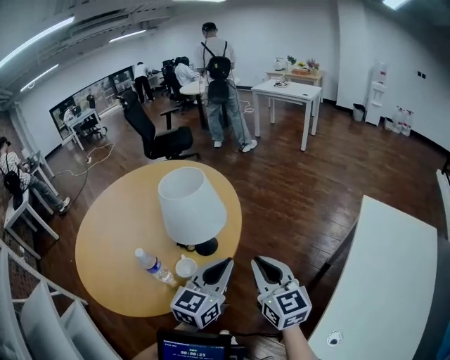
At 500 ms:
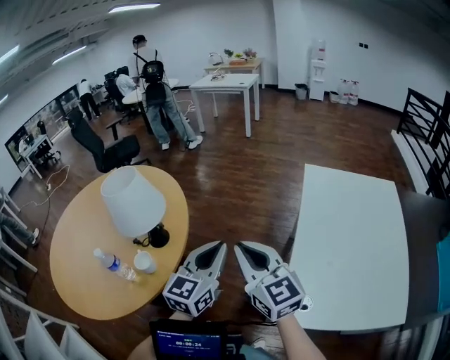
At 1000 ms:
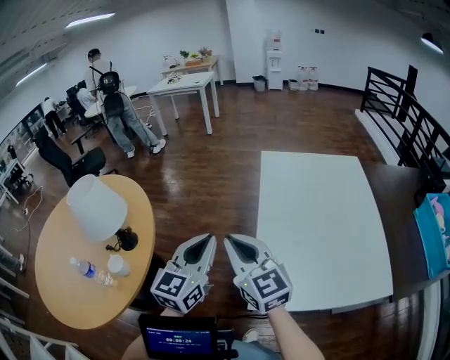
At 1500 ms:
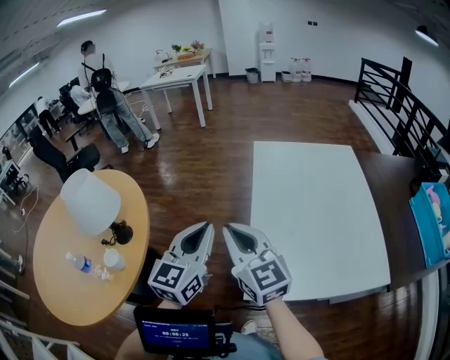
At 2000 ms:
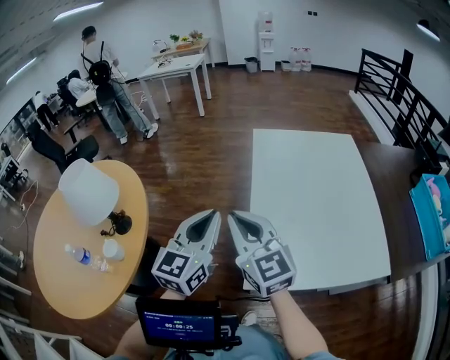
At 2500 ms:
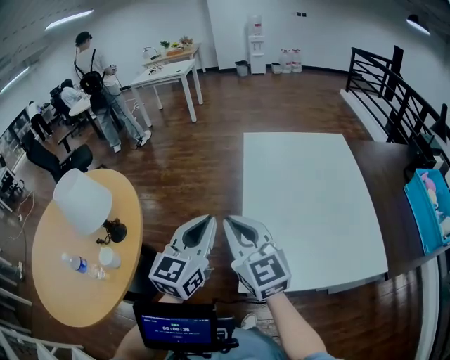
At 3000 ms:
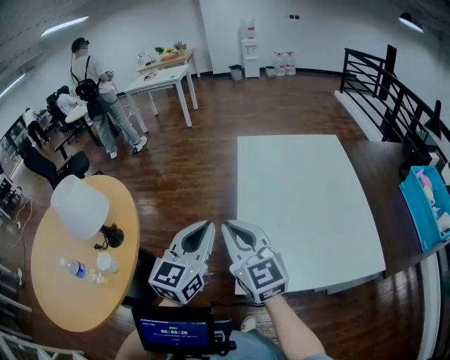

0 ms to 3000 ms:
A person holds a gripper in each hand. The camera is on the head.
0 ms to 1500 ms: The right gripper is displaced to the right and backward by about 25 cm, and rotates roughly 20 degrees. The left gripper moves to the right, about 25 cm, and turns by roughly 30 degrees.
1500 ms to 3000 ms: The grippers move only a little.

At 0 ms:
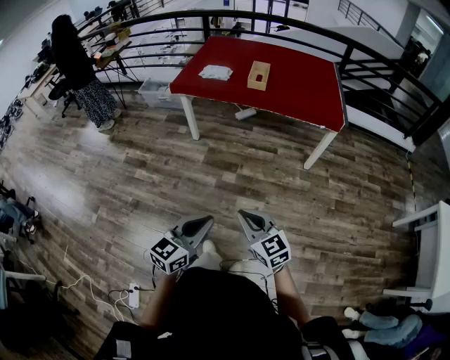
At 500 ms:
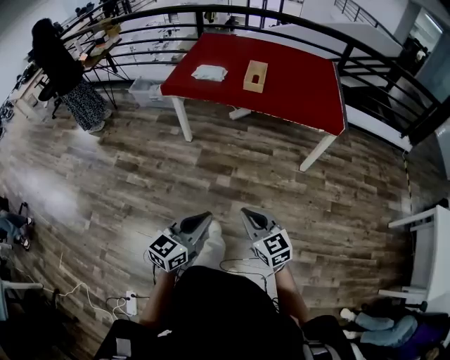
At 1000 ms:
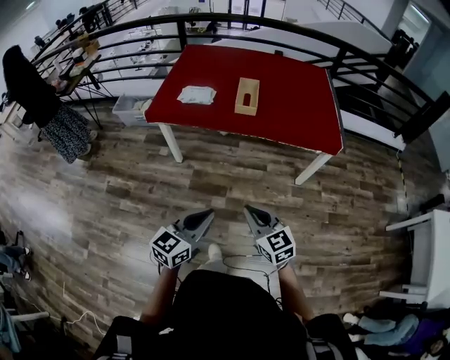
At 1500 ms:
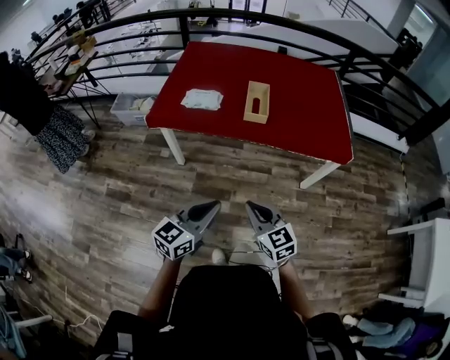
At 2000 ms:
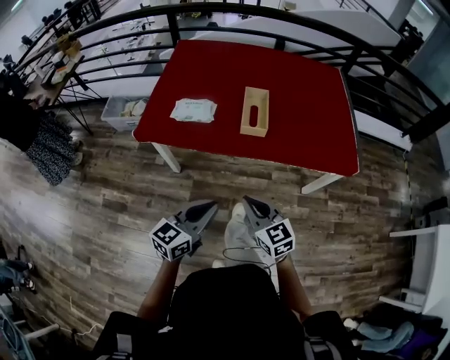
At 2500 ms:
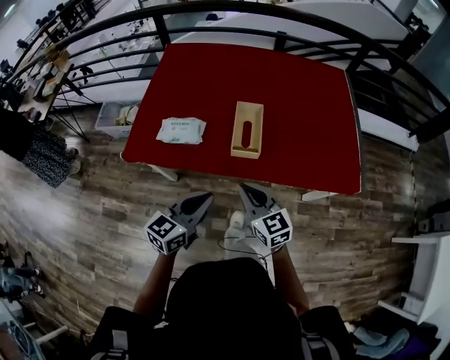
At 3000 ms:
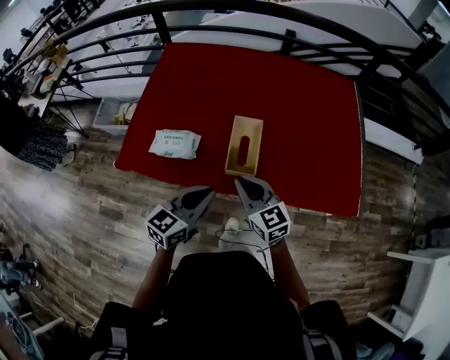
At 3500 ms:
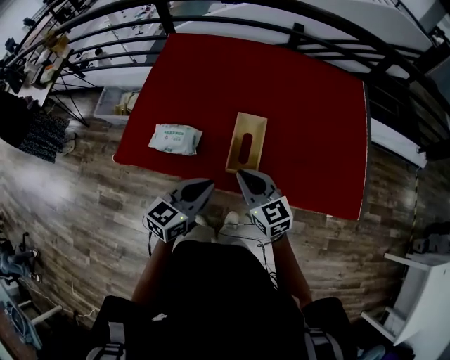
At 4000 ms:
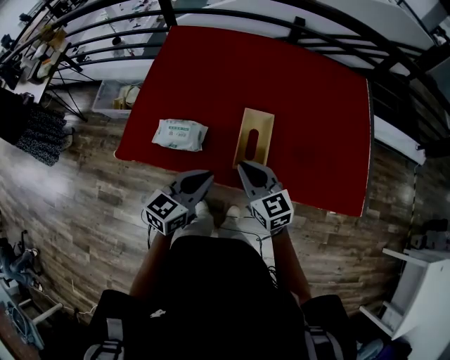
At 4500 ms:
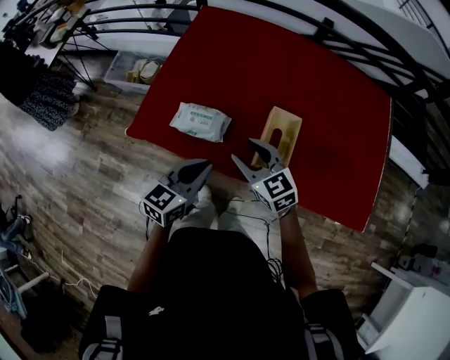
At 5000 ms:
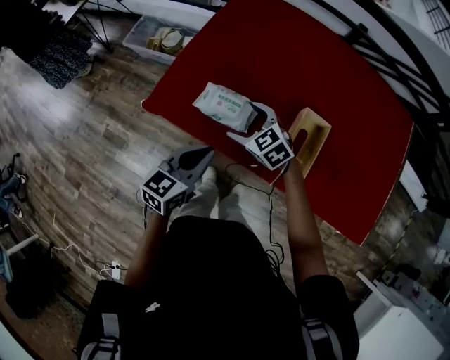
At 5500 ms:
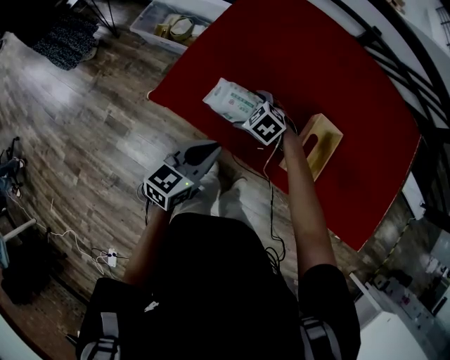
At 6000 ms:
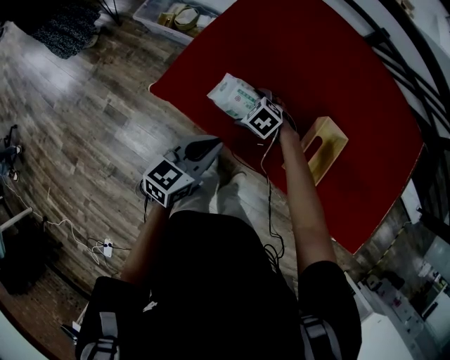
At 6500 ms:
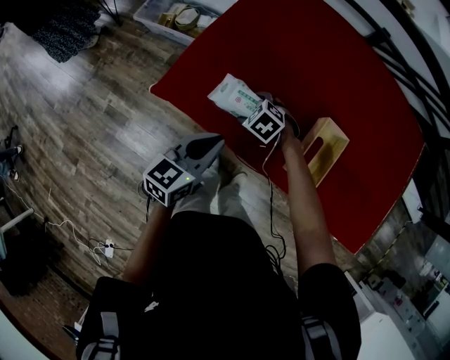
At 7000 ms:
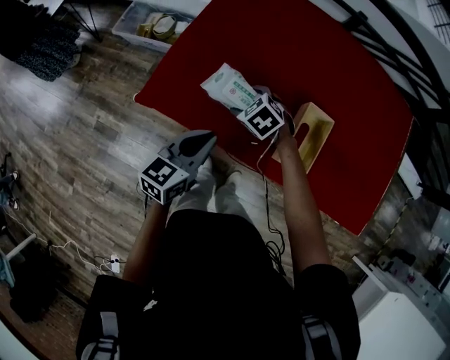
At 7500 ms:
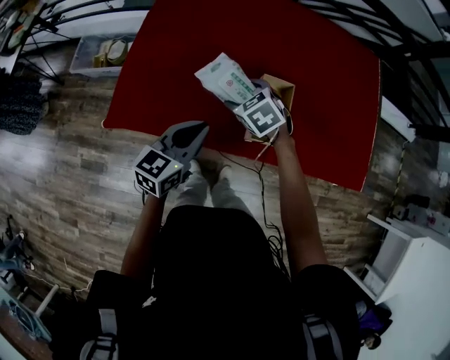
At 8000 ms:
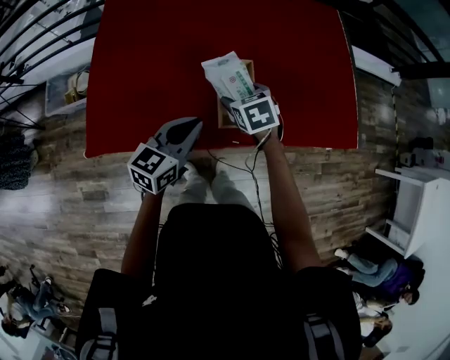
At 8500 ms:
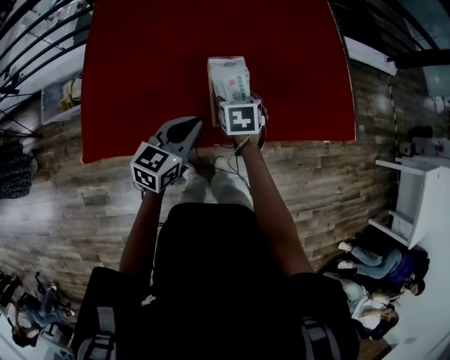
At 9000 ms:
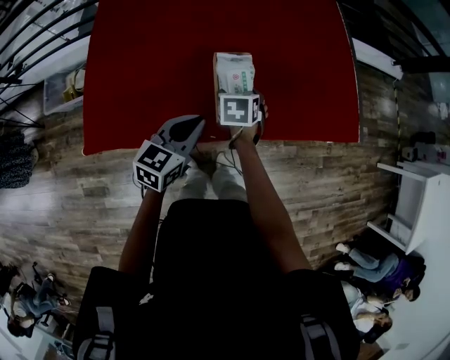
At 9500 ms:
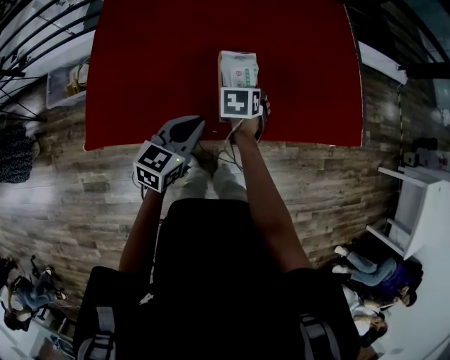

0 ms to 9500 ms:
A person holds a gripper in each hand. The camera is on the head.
0 ms to 2000 ms: The pair of grippers is taken forward, about 50 cm.
2000 ms to 4000 ms: Both grippers move forward, approximately 35 cm.
4000 ms to 5500 ms: The right gripper ends up roughly 35 cm from where it was, angles its fingers downward, by roughly 40 degrees, and opens its fingers. The left gripper ends up some 20 cm from where it was.
5500 ms to 7500 ms: The left gripper shifts by some 10 cm. Meanwhile the right gripper changes place by about 15 cm, and turns by about 30 degrees.
7500 ms to 9500 ms: The right gripper ends up approximately 15 cm from where it was, and twists roughly 50 degrees clockwise, seen from behind. Meanwhile the left gripper moves approximately 10 cm.

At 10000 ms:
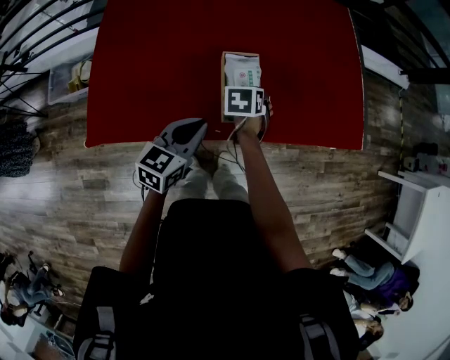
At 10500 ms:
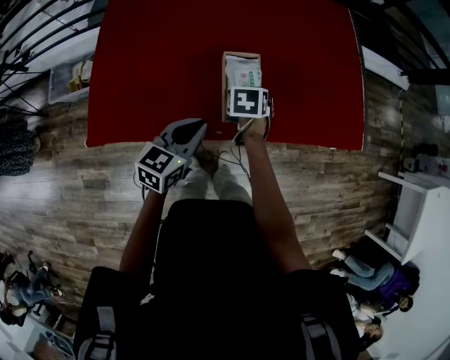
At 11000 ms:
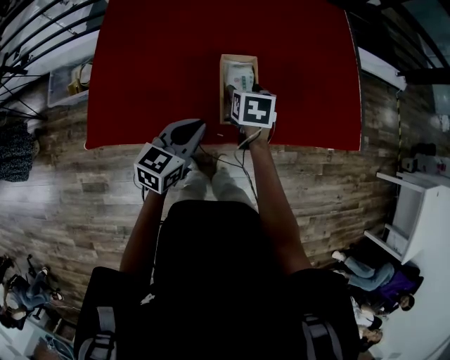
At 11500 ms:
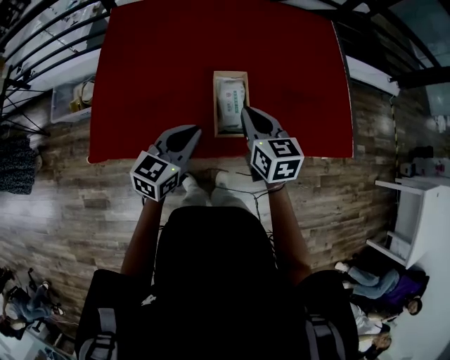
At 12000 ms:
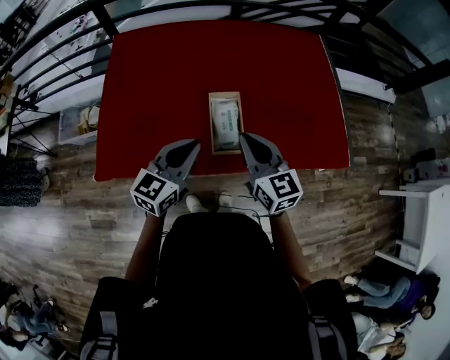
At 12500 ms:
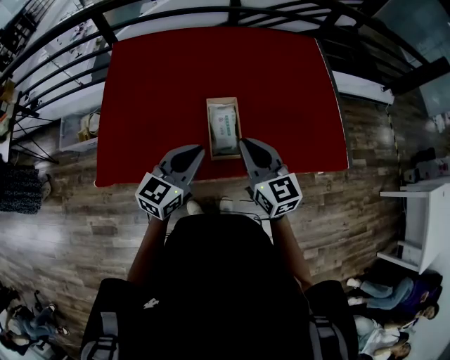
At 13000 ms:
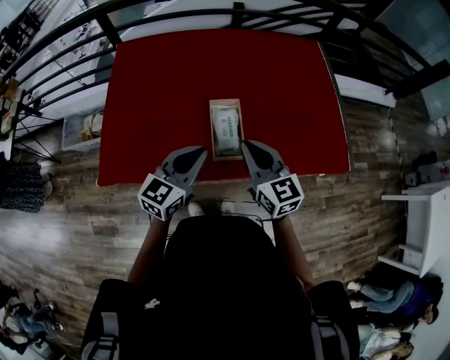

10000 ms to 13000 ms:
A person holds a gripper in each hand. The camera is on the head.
10000 ms to 11500 ms: The right gripper is displaced upward by some 15 cm, angles its fingers upward, by about 40 degrees, and closes up. Meanwhile the left gripper moves upward, some 5 cm.
11500 ms to 13000 ms: The left gripper goes roughly 5 cm upward. Meanwhile the right gripper heads upward and backward, covering some 10 cm.

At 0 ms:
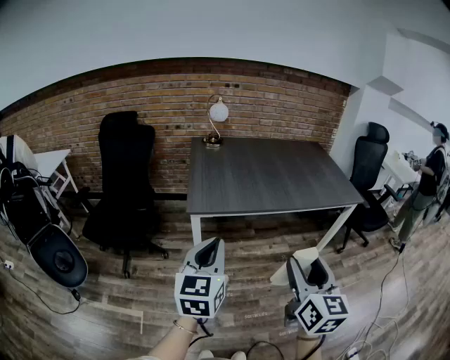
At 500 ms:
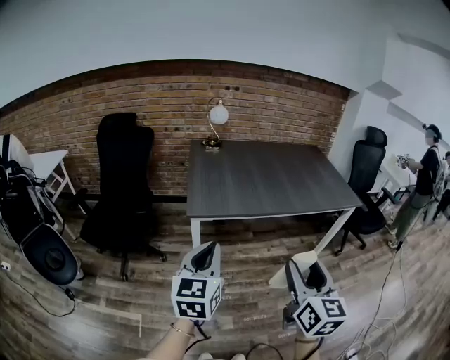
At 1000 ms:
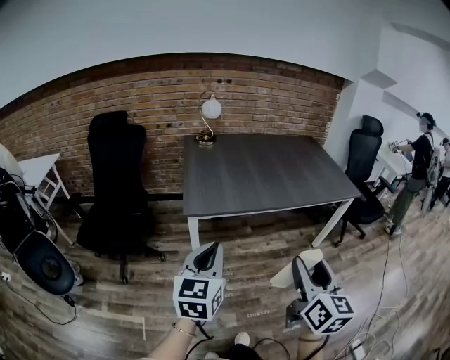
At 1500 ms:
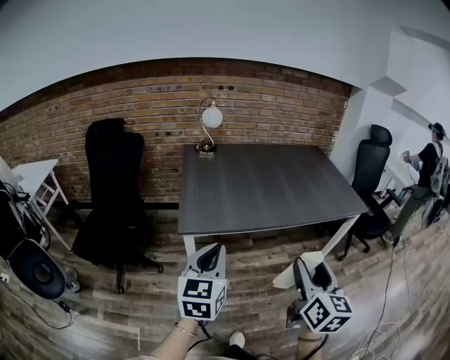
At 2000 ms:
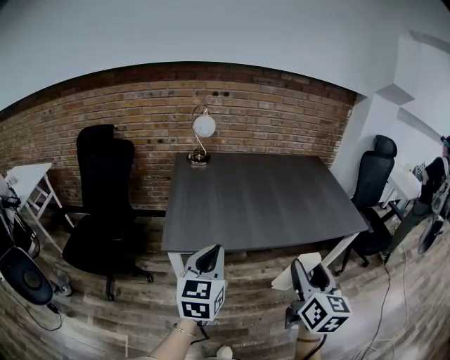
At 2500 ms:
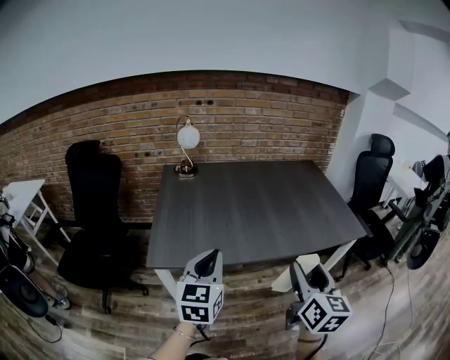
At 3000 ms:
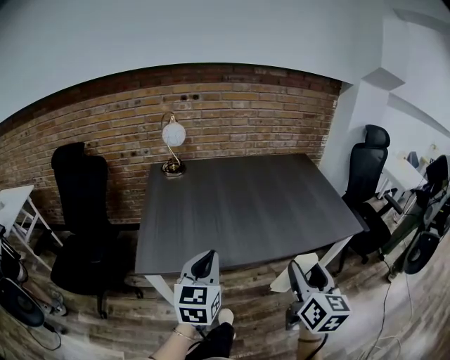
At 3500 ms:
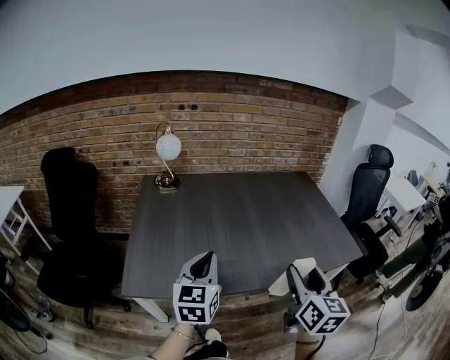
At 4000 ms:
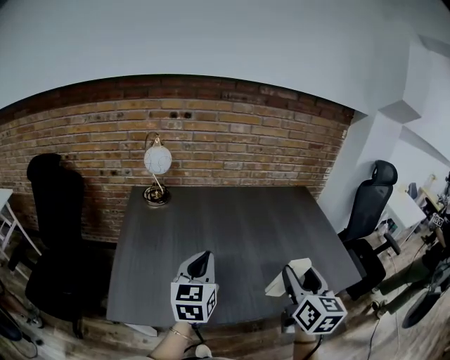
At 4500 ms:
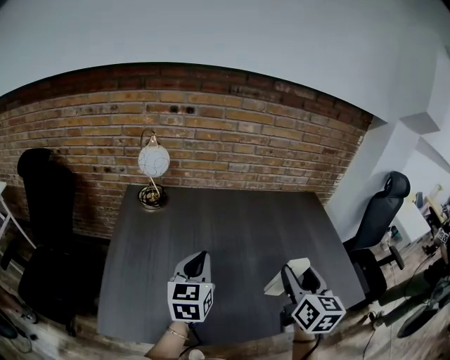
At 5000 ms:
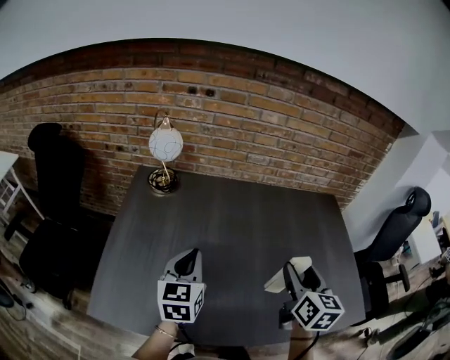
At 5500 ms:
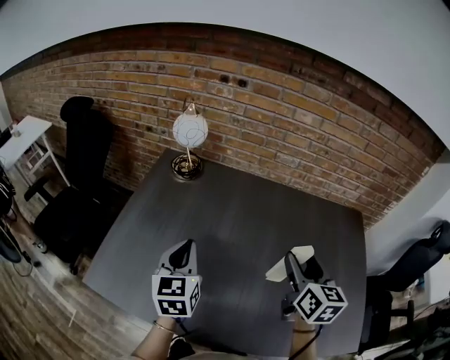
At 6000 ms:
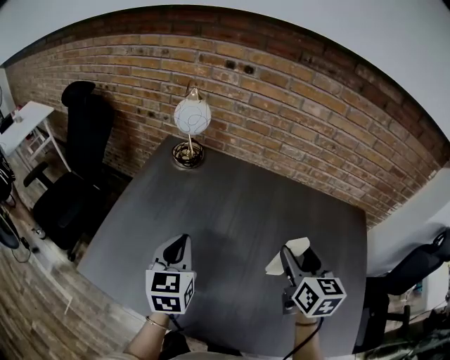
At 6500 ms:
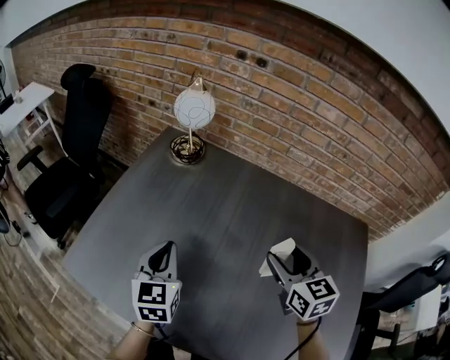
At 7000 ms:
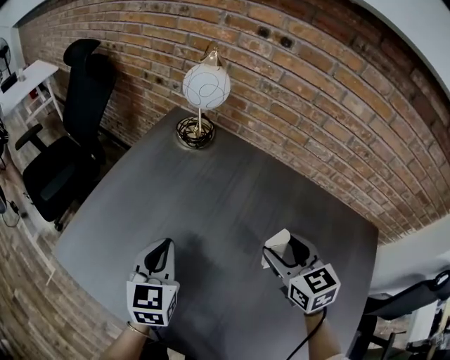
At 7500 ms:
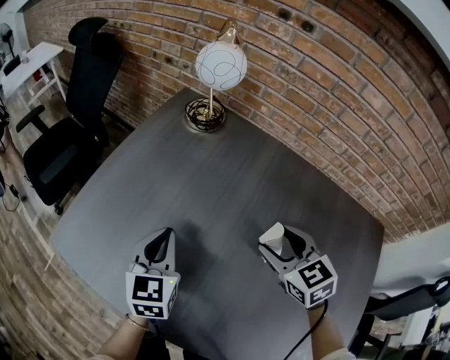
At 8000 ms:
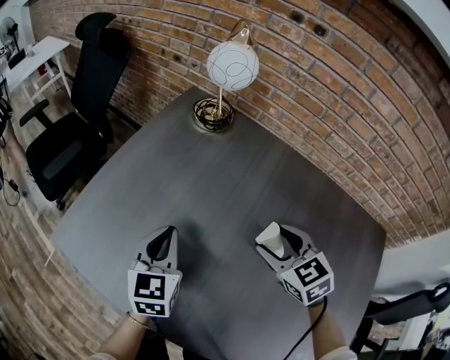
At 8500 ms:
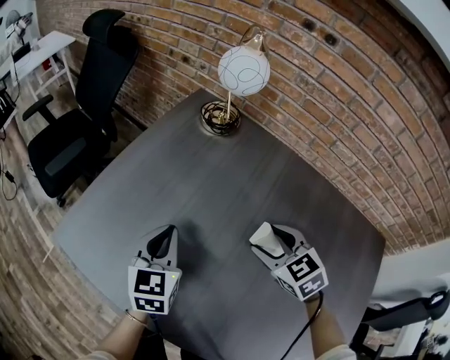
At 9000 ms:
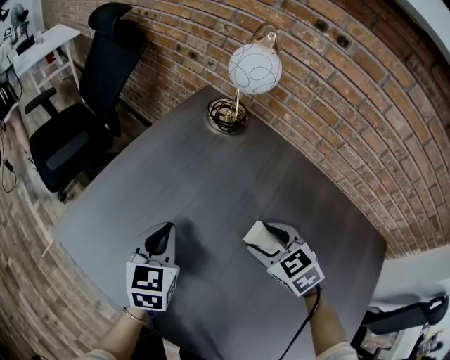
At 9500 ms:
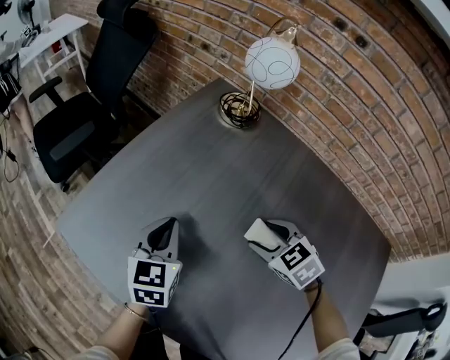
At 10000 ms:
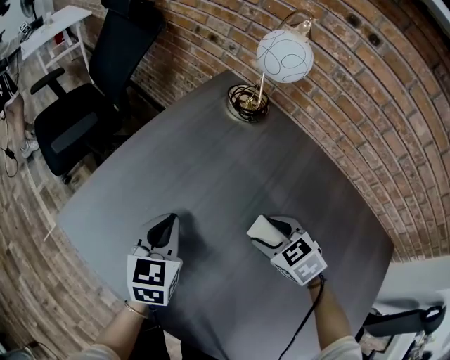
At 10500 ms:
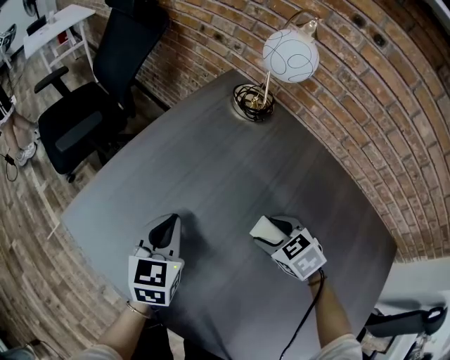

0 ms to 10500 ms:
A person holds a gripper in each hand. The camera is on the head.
0 ms to 2000 ms: The two grippers go some 20 cm forward.
2000 ms to 4000 ms: Both grippers travel together forward, roughly 30 cm.
4000 ms to 6500 ms: The left gripper ends up some 15 cm from where it was, and turns by some 40 degrees; the right gripper changes place by some 30 cm, and swivels some 50 degrees.
6500 ms to 8500 ms: The right gripper travels downward, to the left and forward by some 15 cm, and rotates some 40 degrees, while the left gripper travels downward by some 5 cm.
8500 ms to 10500 ms: The right gripper shifts approximately 10 cm downward, while the left gripper goes approximately 5 cm to the left.
